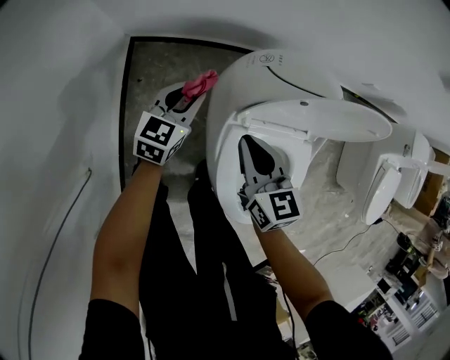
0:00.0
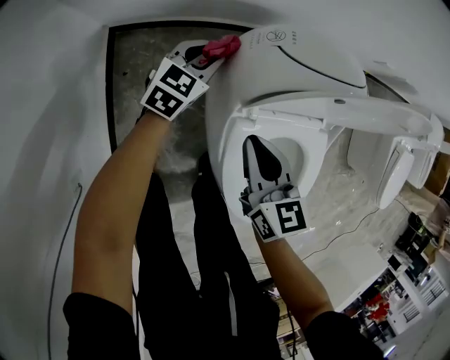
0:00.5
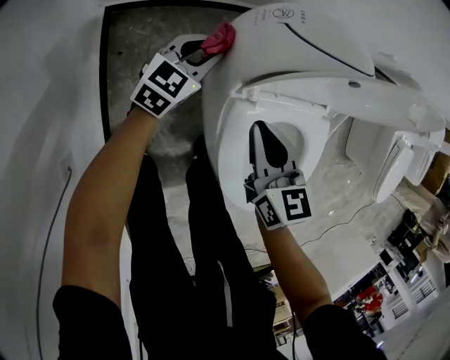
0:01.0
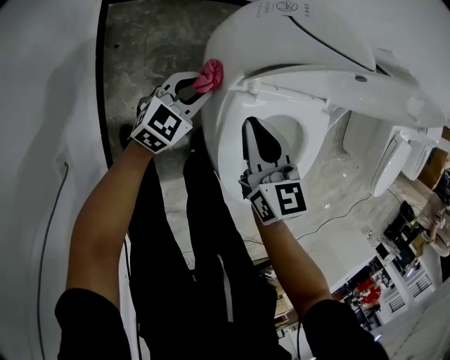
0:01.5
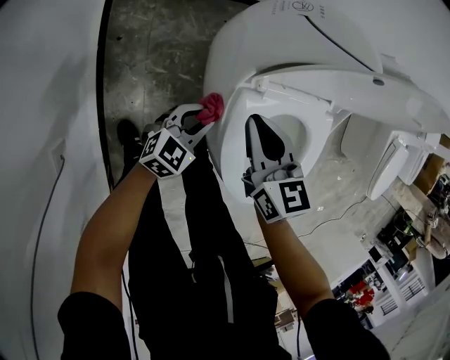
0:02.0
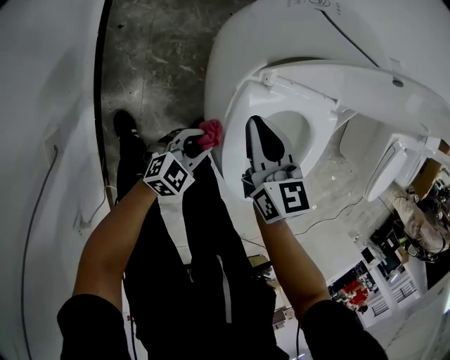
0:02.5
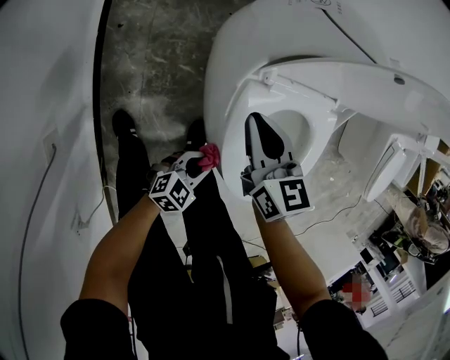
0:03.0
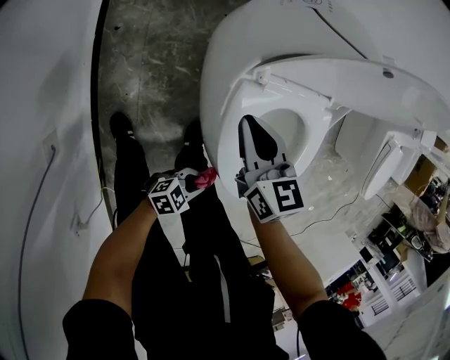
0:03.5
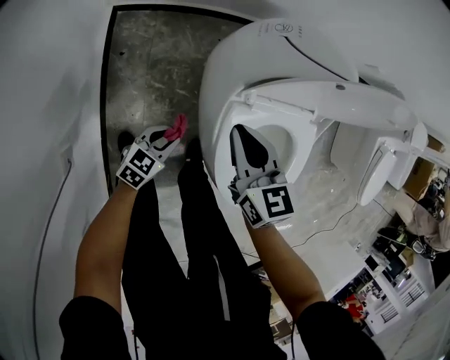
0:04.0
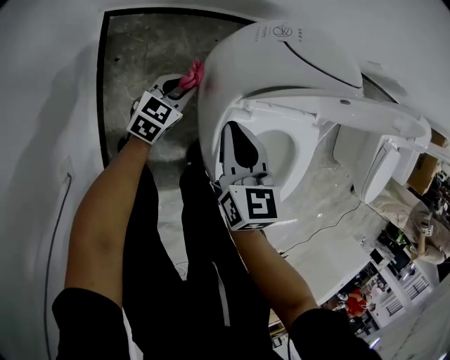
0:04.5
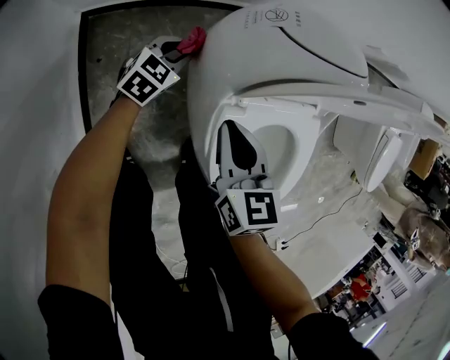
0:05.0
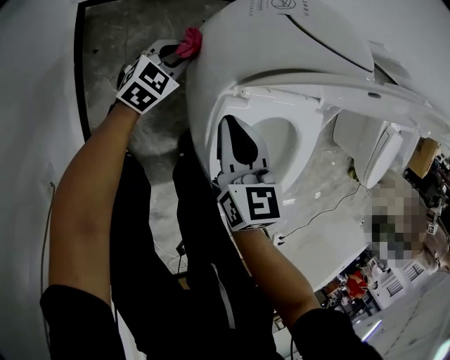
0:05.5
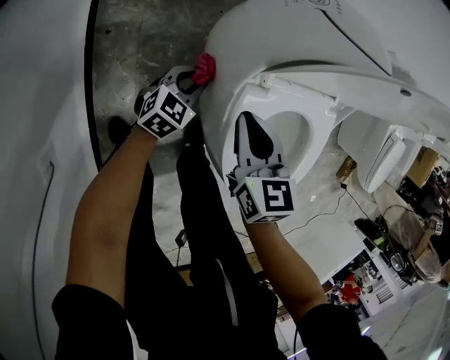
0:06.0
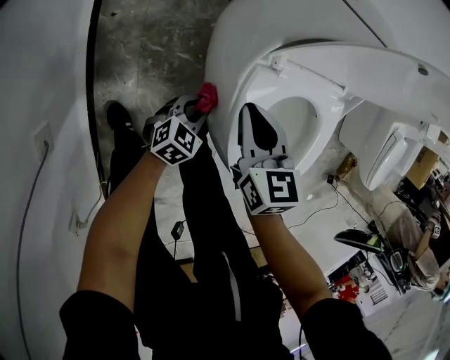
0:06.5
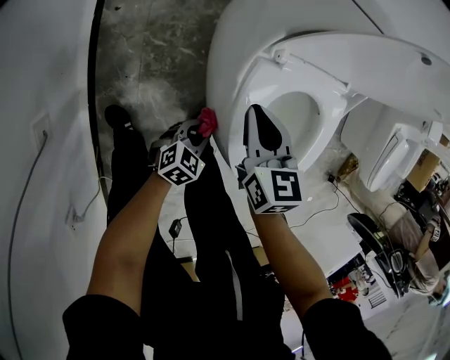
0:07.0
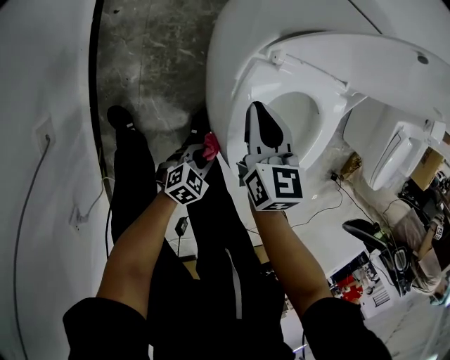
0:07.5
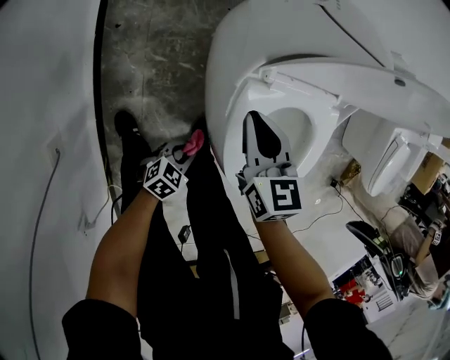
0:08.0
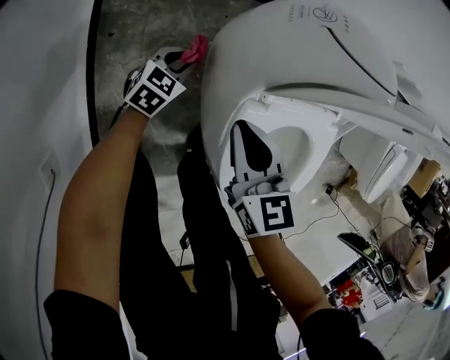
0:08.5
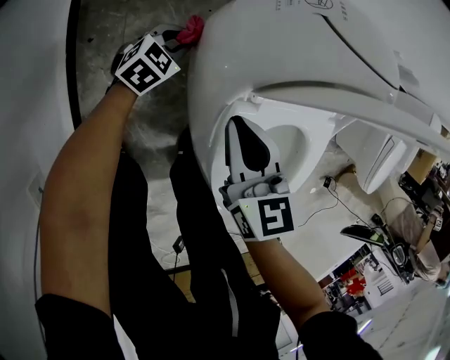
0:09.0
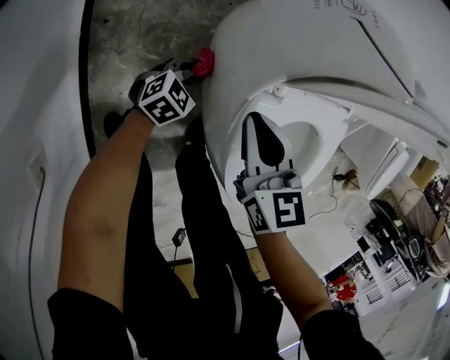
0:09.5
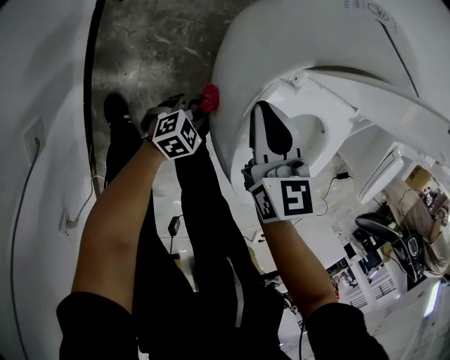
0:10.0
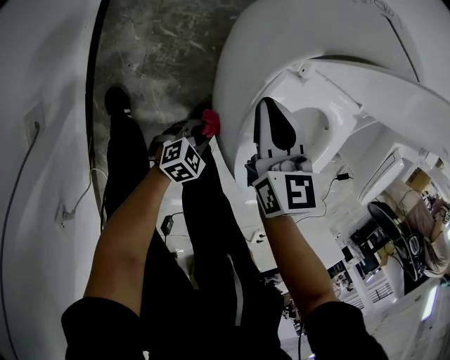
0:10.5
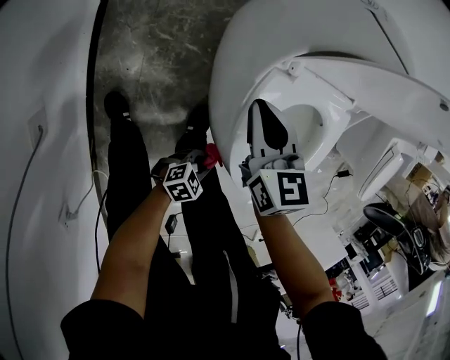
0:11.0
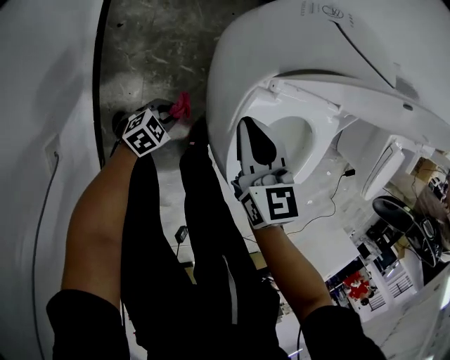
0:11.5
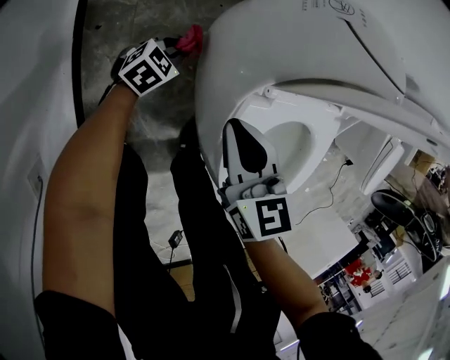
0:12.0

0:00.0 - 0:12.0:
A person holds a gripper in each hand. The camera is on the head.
0:00.0 - 0:02.0: The left gripper travels backward, downward and to the right by approximately 25 cm, and rotates about 30 degrees. The right gripper is displaced downward by about 10 cm.
0:04.0 - 0:06.0: The left gripper is displaced forward and downward by approximately 15 cm. The right gripper moves downward, approximately 10 cm.
0:06.0 - 0:08.0: The left gripper heads backward and to the right, covering roughly 25 cm, and swivels some 20 degrees.
0:08.0 - 0:10.0: The left gripper goes approximately 5 cm downward, and reaches some 35 cm forward, then returns.
0:10.0 - 0:12.0: The left gripper goes about 20 cm forward and to the left.

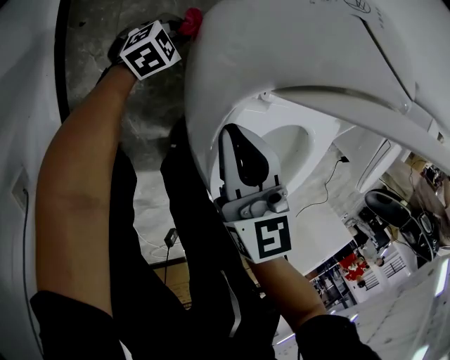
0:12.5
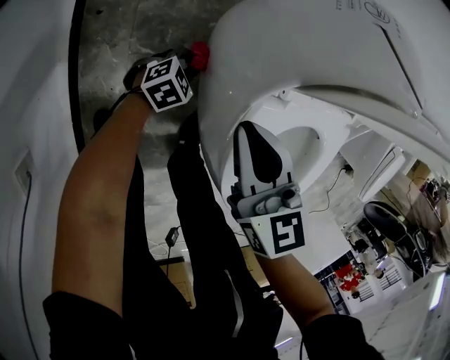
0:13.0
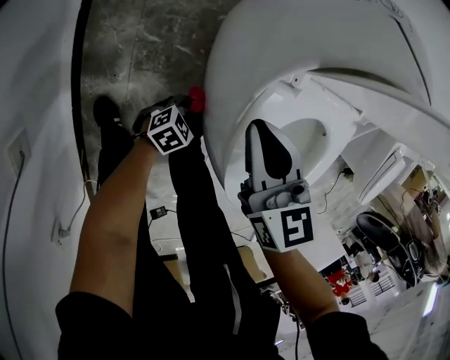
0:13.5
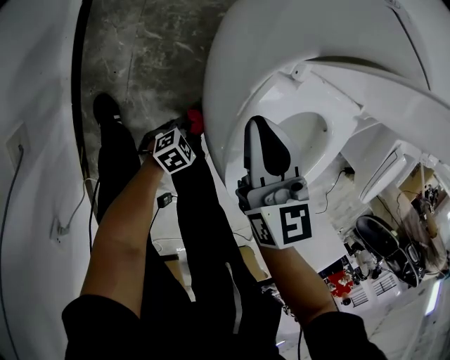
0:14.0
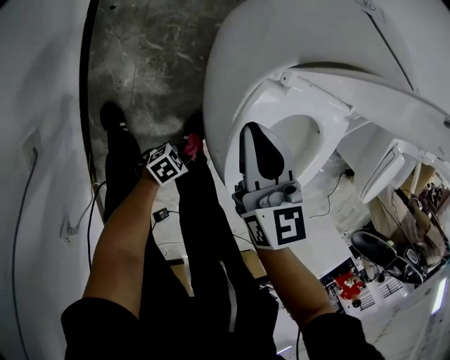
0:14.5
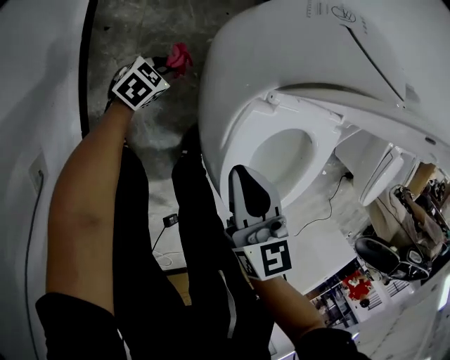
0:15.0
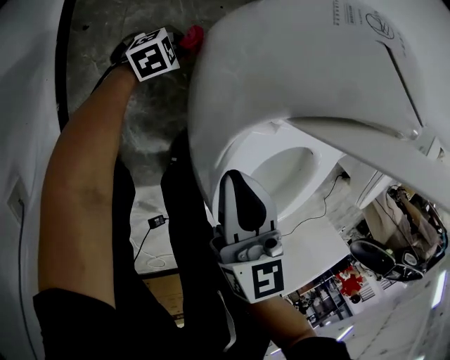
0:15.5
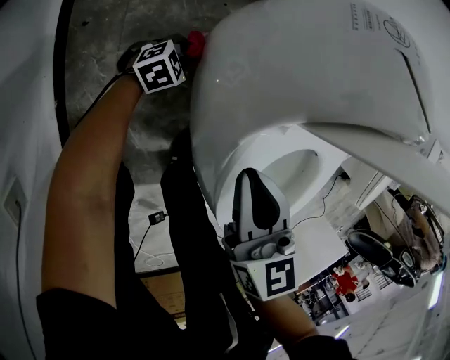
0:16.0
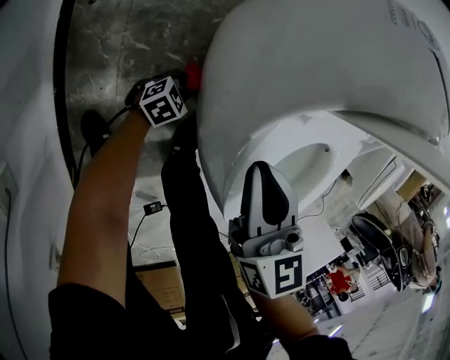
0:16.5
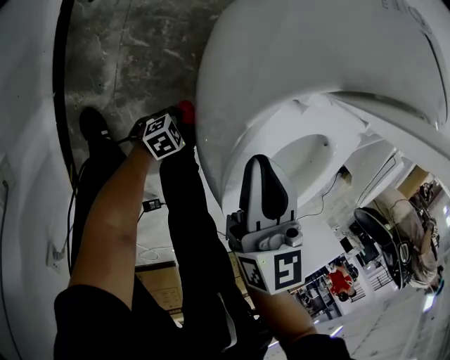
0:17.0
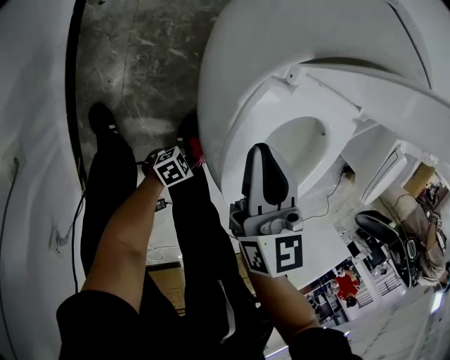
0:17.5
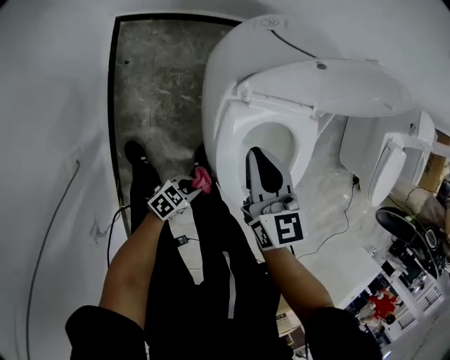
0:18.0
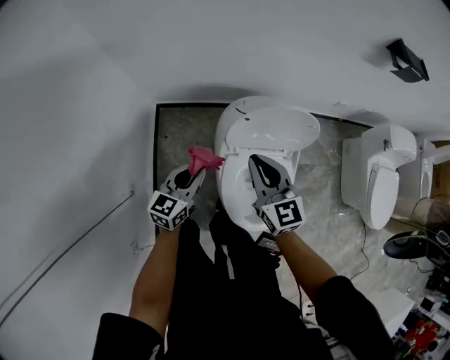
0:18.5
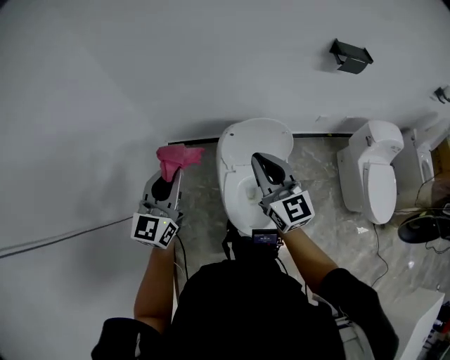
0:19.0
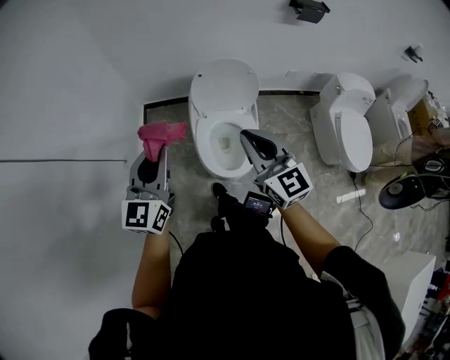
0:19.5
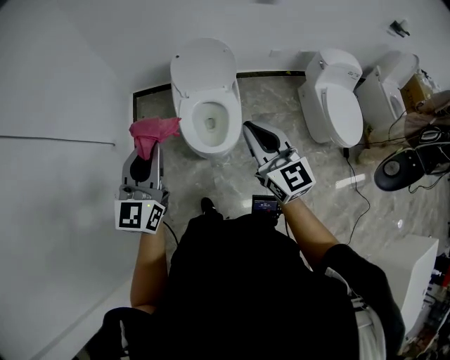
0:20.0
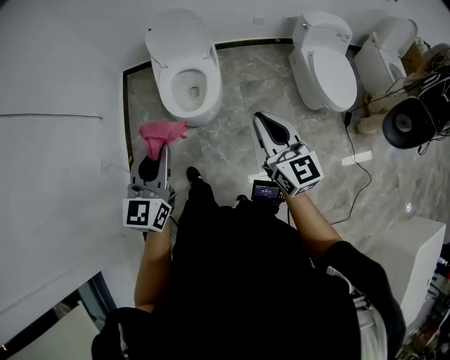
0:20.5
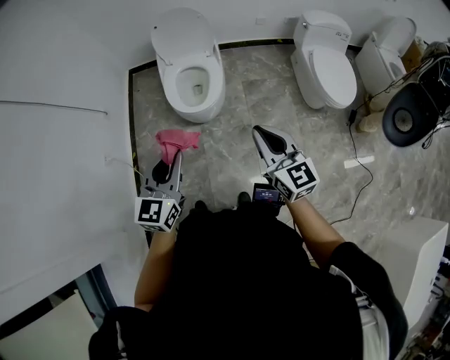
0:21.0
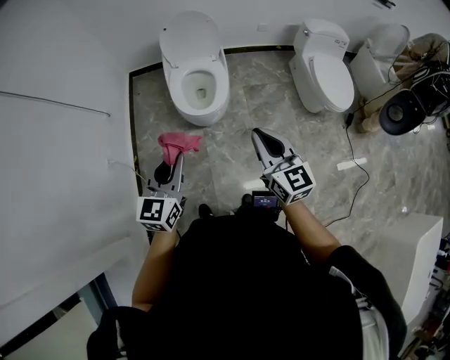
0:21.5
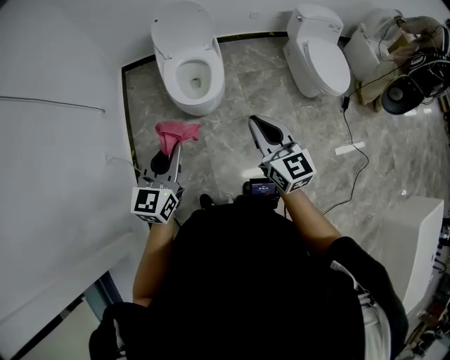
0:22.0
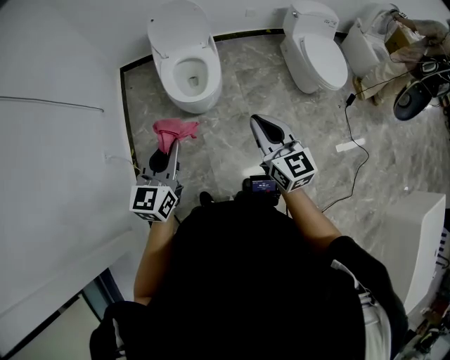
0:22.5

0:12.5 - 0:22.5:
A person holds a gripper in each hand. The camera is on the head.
0:12.5 - 0:14.5: The left gripper ends up roughly 40 cm from where it was, and changes its angle by about 40 degrees.
0:14.5 - 0:16.5: The left gripper changes its angle by about 20 degrees.
0:16.5 - 0:18.5: The left gripper heads upward, covering some 70 cm, and turns by some 50 degrees. Meanwhile the right gripper moves upward, roughly 40 cm, and changes its angle by some 30 degrees.
0:18.5 - 0:20.5: The two grippers travel together, backward and to the right, approximately 60 cm. The left gripper goes some 25 cm upward, and rotates some 20 degrees.
0:20.5 - 0:22.5: Both grippers travel together backward and to the left, approximately 10 cm.

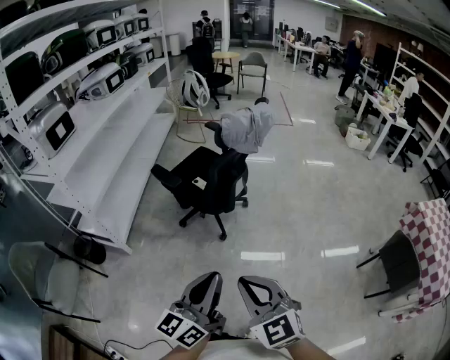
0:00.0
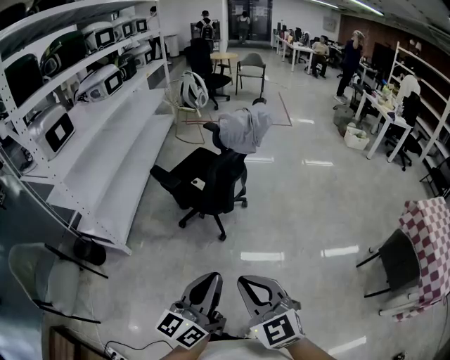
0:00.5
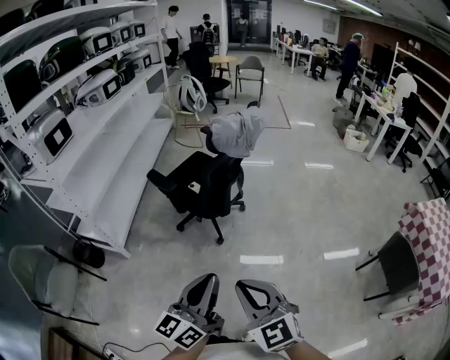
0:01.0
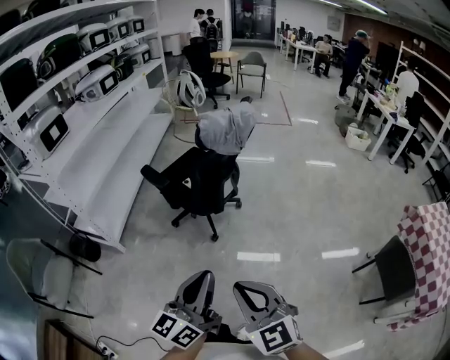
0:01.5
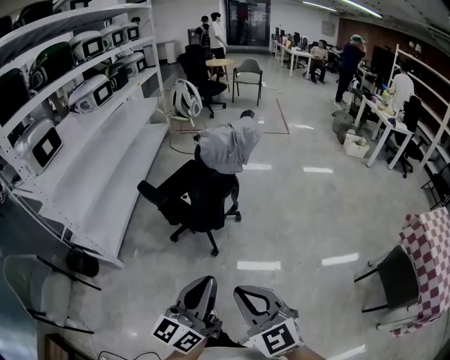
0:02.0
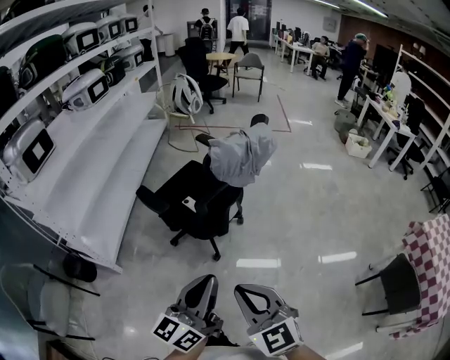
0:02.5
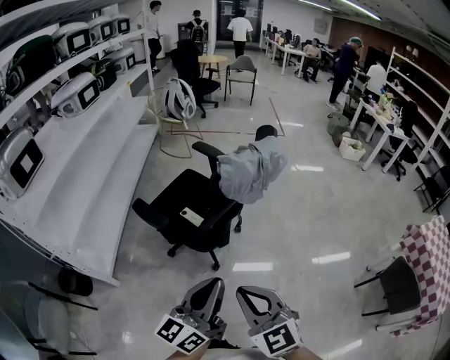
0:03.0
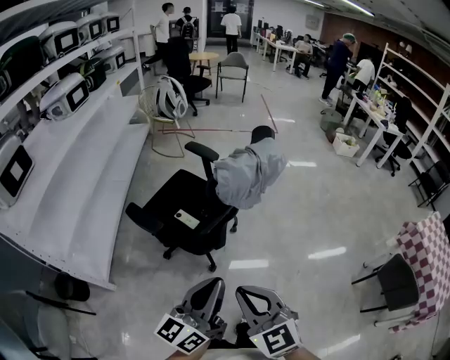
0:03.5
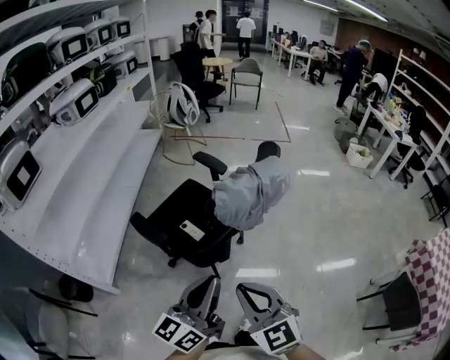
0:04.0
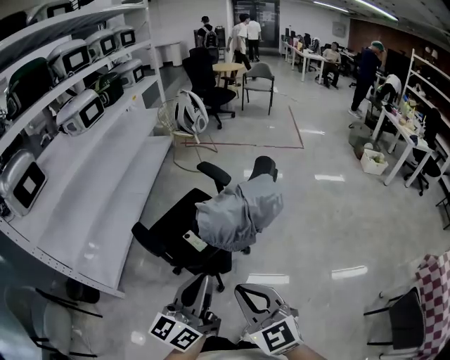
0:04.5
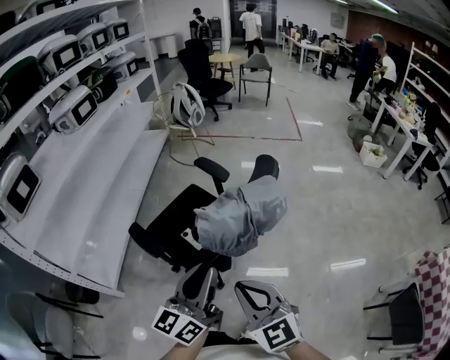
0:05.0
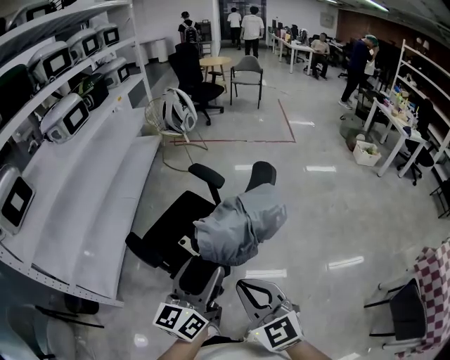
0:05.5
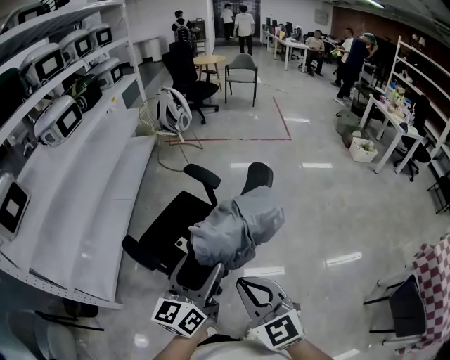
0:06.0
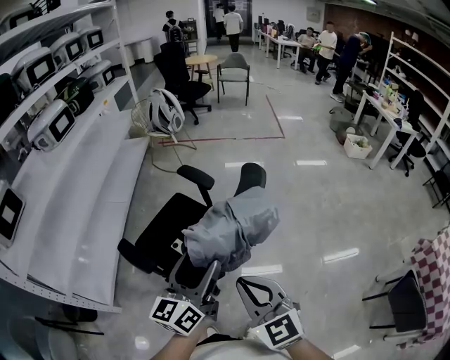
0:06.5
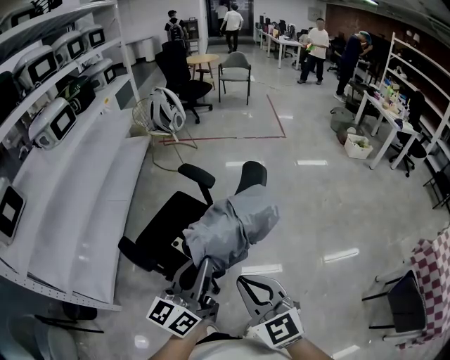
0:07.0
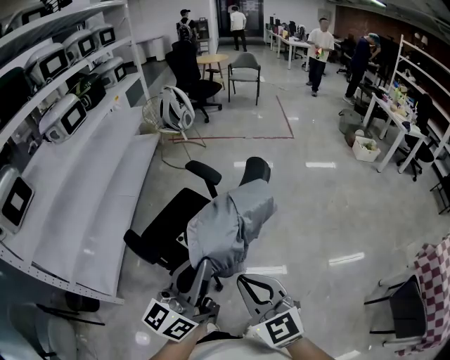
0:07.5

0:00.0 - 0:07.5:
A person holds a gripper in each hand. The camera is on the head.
0:00.0 - 0:02.0: The right gripper moves to the right and forward, roughly 10 cm. Meanwhile the left gripper goes roughly 10 cm forward and to the right.
0:02.0 - 0:04.0: The grippers both shift forward by some 25 cm.
0:04.0 - 0:05.5: The right gripper goes roughly 15 cm forward and to the right, while the left gripper heads forward, covering roughly 15 cm, and opens up.
0:05.5 - 0:07.5: The left gripper shifts roughly 5 cm upward, and closes up.
